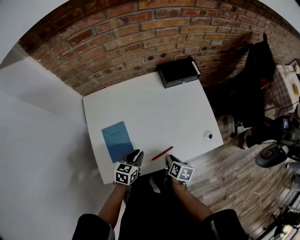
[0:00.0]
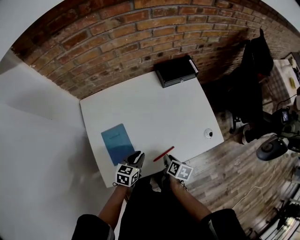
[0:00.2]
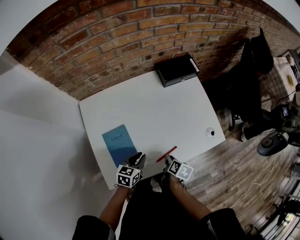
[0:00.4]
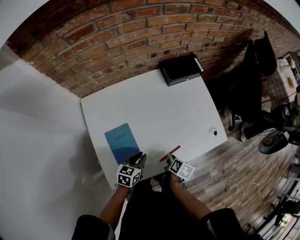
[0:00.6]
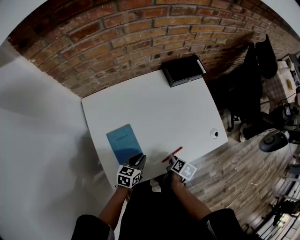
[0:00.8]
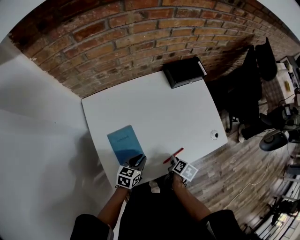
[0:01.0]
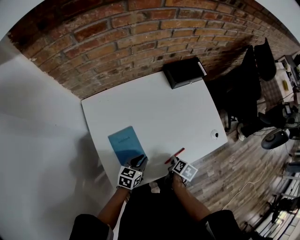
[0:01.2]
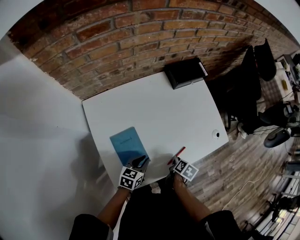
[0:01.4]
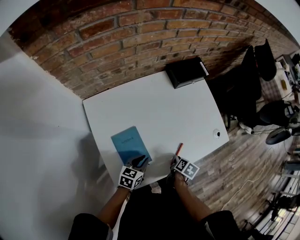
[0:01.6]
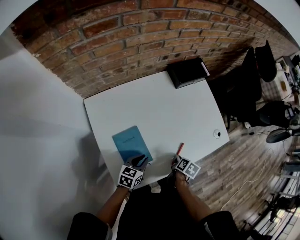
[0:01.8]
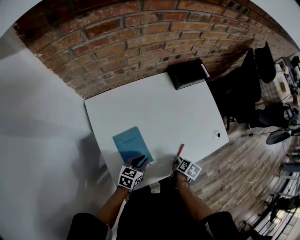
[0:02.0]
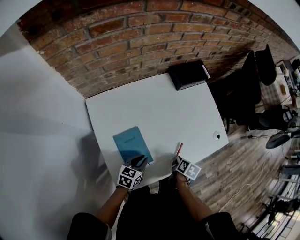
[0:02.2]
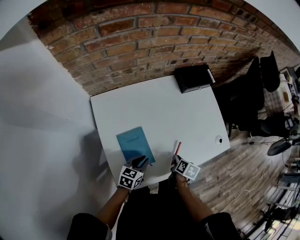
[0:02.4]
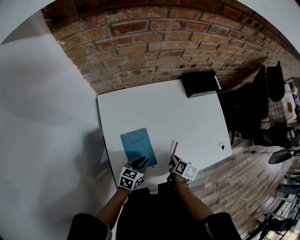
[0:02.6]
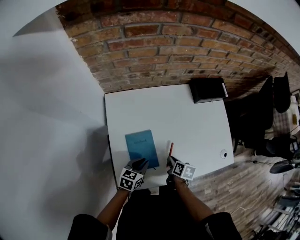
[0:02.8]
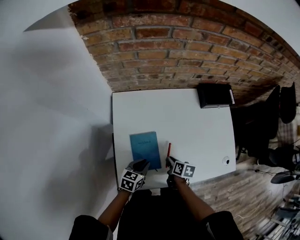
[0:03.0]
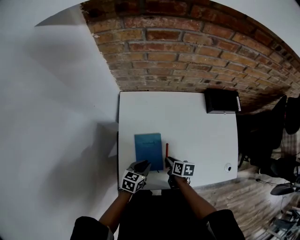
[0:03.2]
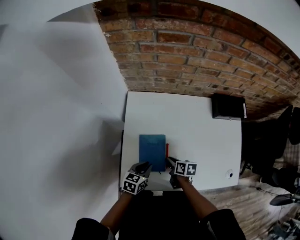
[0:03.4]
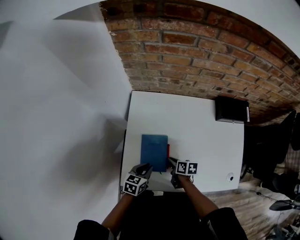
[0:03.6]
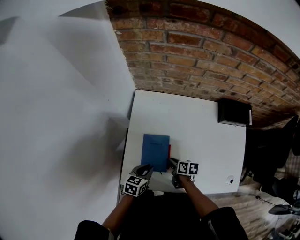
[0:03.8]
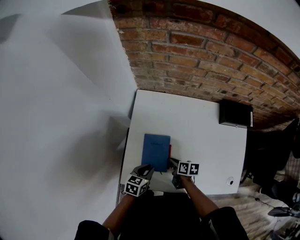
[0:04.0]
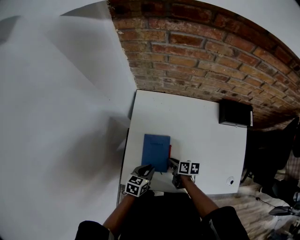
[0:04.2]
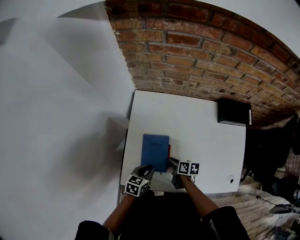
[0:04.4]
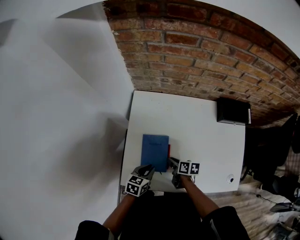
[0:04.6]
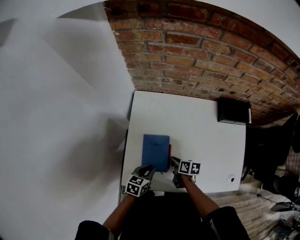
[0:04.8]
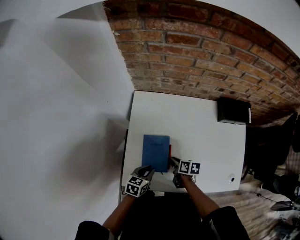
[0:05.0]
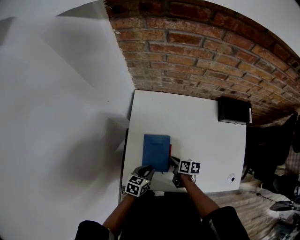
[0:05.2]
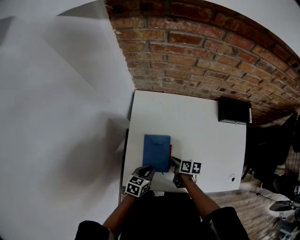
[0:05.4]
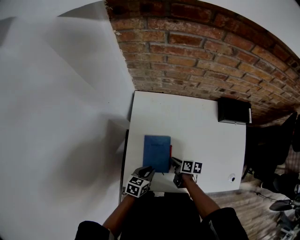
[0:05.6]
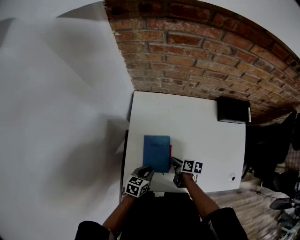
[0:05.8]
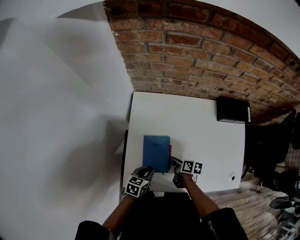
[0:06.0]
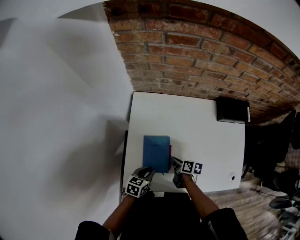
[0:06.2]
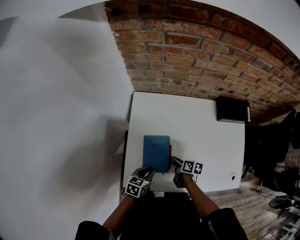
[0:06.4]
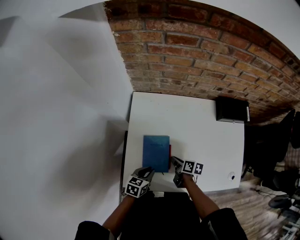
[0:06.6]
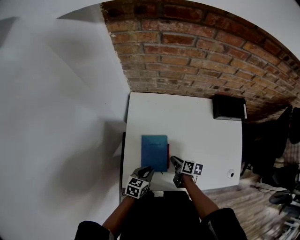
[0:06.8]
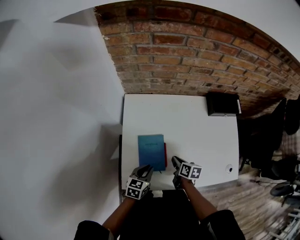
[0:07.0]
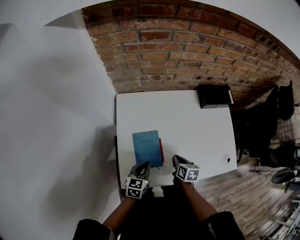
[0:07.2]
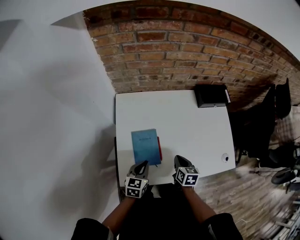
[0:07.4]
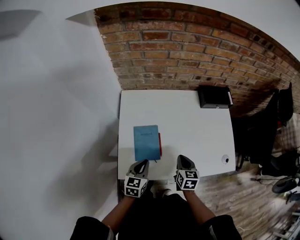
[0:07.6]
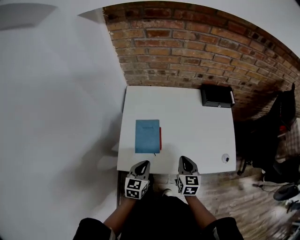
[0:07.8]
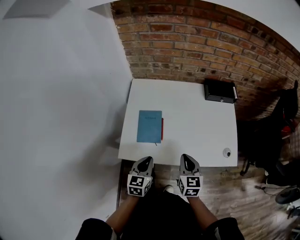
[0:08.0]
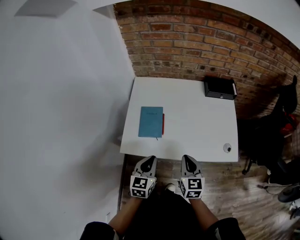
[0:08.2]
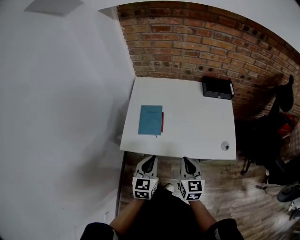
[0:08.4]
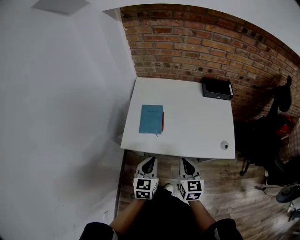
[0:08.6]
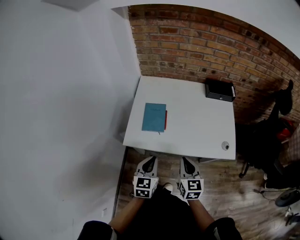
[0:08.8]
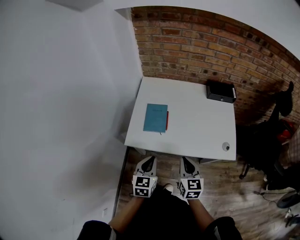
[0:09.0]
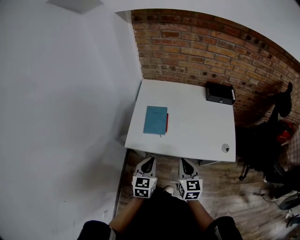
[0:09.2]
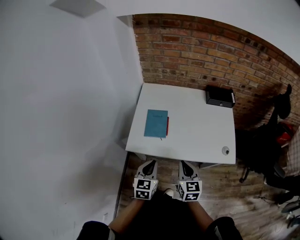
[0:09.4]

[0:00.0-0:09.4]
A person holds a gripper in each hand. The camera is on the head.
0.0 to 1.6 s: The right gripper changes place by about 5 cm, and changes its angle by about 30 degrees, while the left gripper moves to the left, approximately 5 cm.
1.6 to 3.2 s: The right gripper shifts by about 15 cm, and rotates roughly 50 degrees, while the left gripper moves about 5 cm, and swivels approximately 20 degrees.
3.2 to 6.2 s: There are only small adjustments of the grippers.
6.2 to 7.8 s: The left gripper travels backward and upward by some 10 cm, and changes its angle by approximately 20 degrees, while the right gripper is displaced upward, backward and to the right by some 20 cm, and rotates roughly 50 degrees.
7.8 to 9.4 s: The two grippers go roughly 15 cm backward and upward.

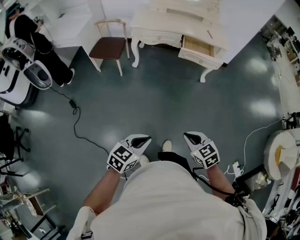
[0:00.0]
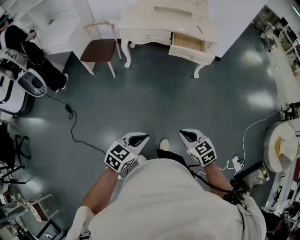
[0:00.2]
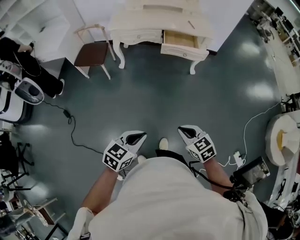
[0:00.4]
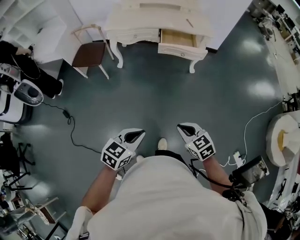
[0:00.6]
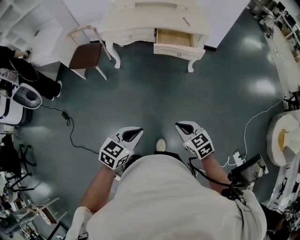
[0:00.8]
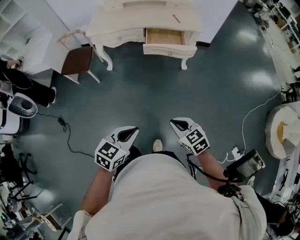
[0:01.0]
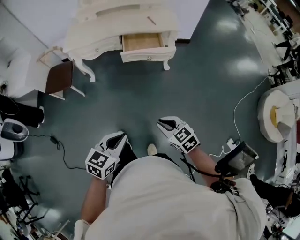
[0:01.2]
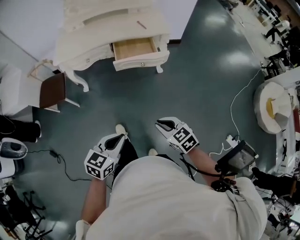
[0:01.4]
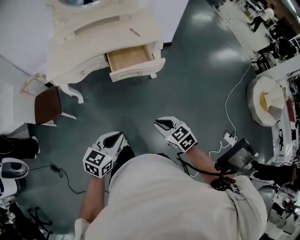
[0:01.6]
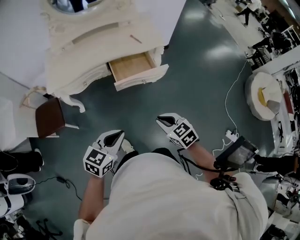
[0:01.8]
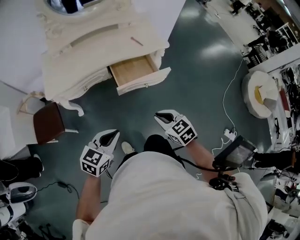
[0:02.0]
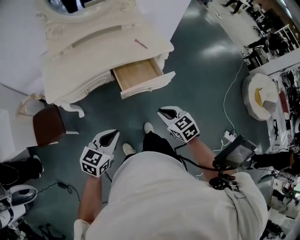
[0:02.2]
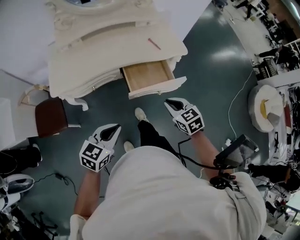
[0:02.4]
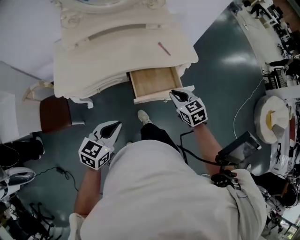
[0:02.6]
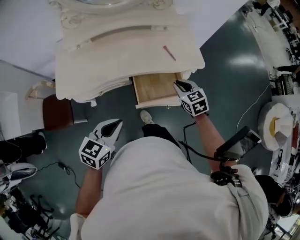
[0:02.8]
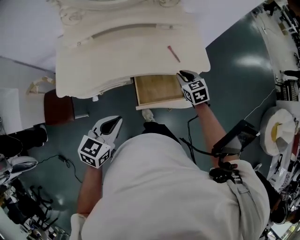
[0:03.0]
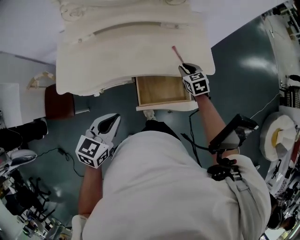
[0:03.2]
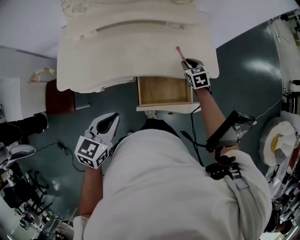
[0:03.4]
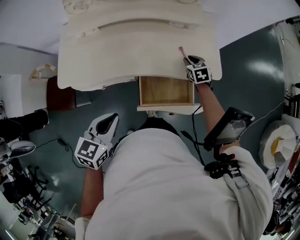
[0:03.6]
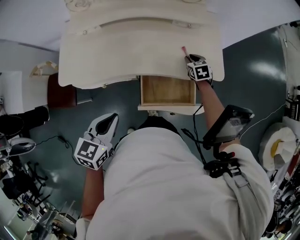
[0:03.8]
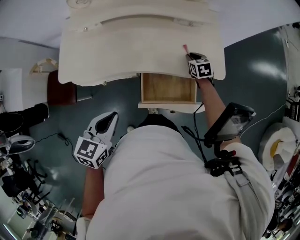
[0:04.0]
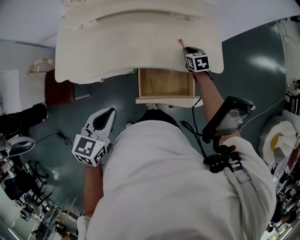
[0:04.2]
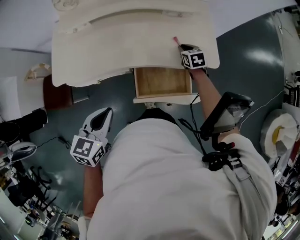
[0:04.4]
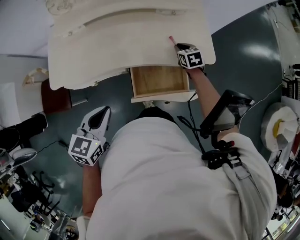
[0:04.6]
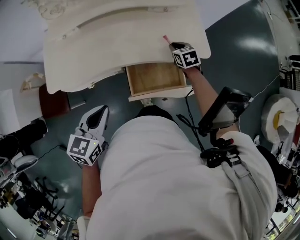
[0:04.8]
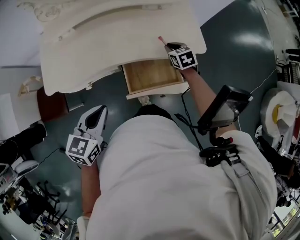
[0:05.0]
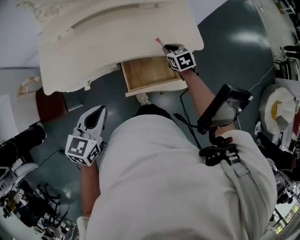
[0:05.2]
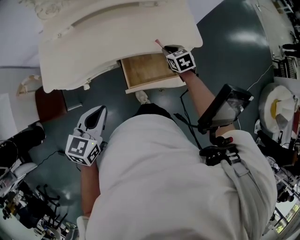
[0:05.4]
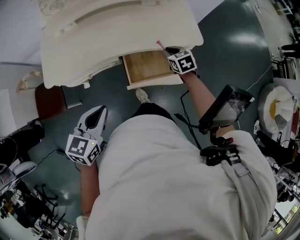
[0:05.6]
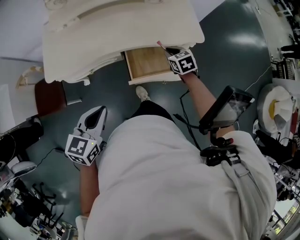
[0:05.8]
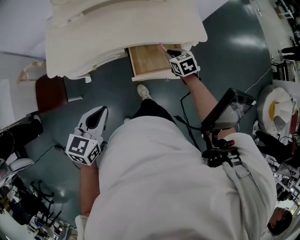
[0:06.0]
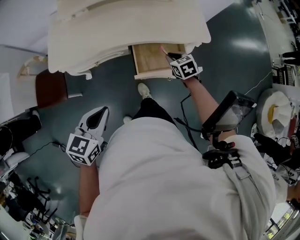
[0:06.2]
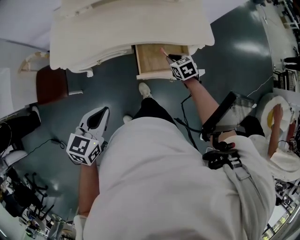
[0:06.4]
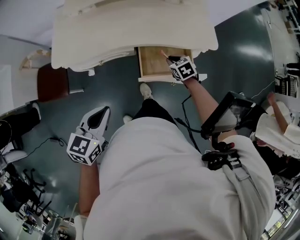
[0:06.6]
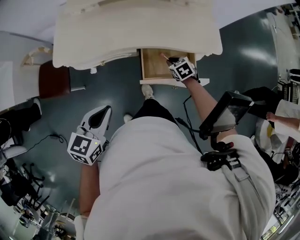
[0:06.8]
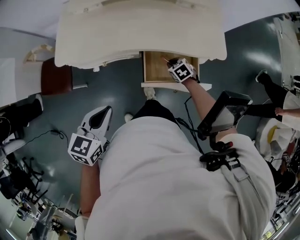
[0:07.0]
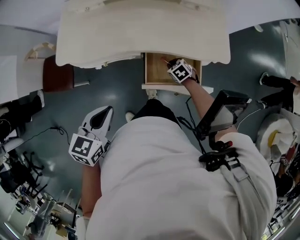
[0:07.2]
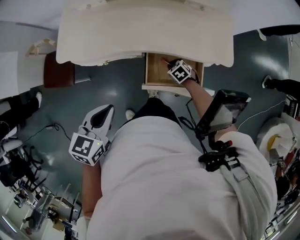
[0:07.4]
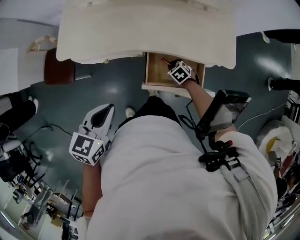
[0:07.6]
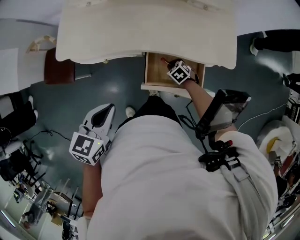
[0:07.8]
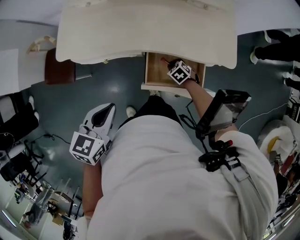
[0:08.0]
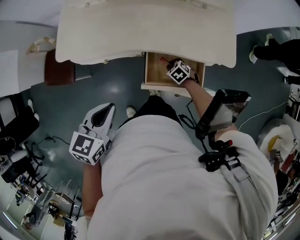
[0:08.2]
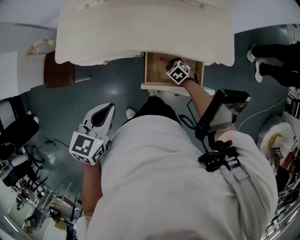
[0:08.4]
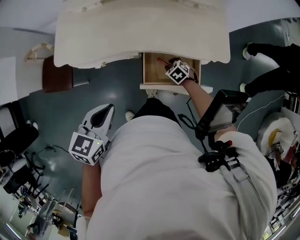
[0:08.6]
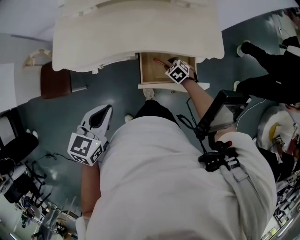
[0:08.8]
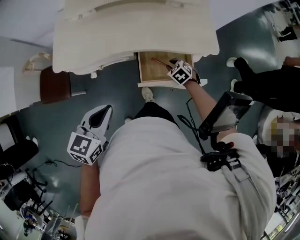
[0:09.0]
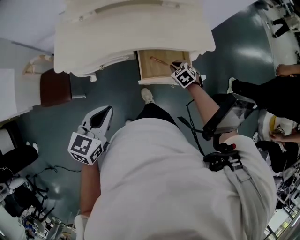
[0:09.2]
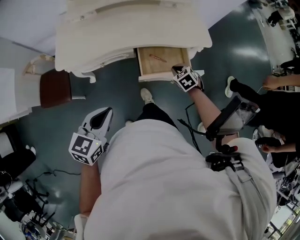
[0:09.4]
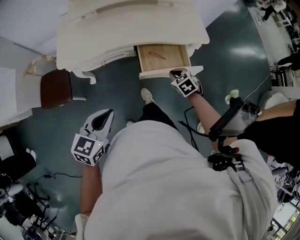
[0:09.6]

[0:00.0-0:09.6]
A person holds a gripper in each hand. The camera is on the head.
0.0 to 1.6 s: The two grippers go roughly 35 cm forward.
1.6 to 3.2 s: The pair of grippers is taken forward, roughly 50 cm.
3.2 to 4.8 s: The right gripper is displaced downward and forward by some 10 cm.
4.8 to 6.4 s: Both grippers move backward, approximately 20 cm.
6.4 to 8.0 s: The right gripper heads downward, covering some 15 cm, and changes its angle by roughly 30 degrees, while the left gripper shifts some 10 cm forward and to the right.
8.0 to 9.6 s: The left gripper changes place by about 15 cm, while the right gripper is displaced upward by roughly 15 cm, and swivels roughly 20 degrees.

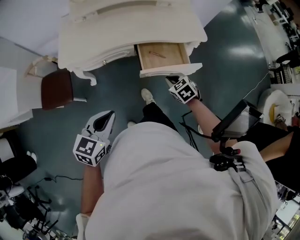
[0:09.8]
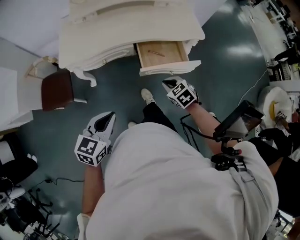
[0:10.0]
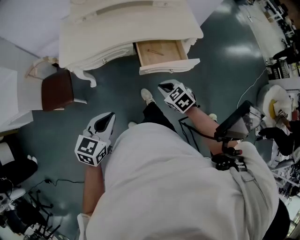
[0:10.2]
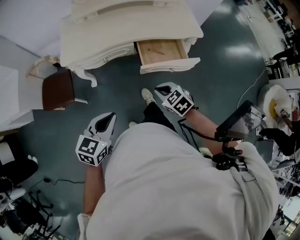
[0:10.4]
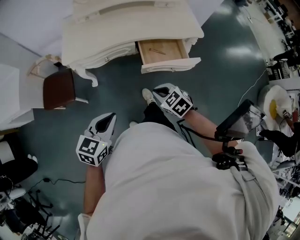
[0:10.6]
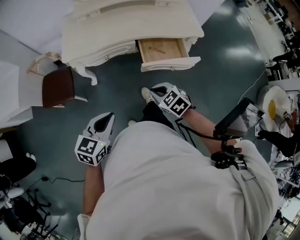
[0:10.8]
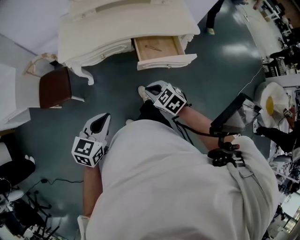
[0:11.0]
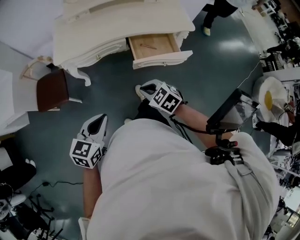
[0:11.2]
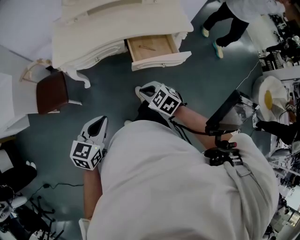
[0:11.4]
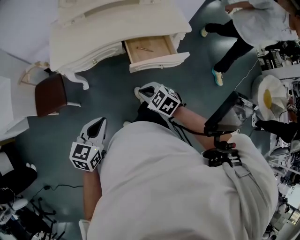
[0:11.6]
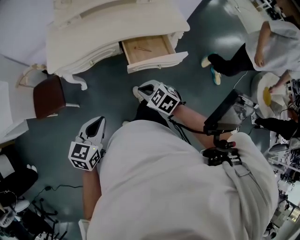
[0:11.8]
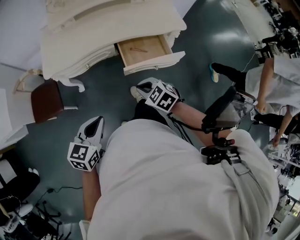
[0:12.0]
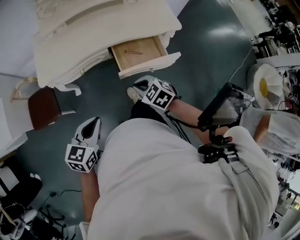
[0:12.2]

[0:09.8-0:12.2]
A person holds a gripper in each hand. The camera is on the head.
9.8 to 11.0 s: The right gripper shifts about 15 cm to the left and backward.
11.0 to 12.2 s: There are only small adjustments of the grippers.

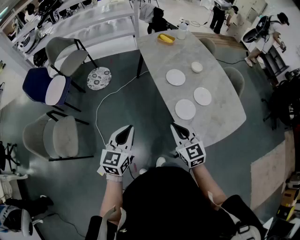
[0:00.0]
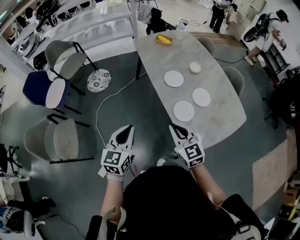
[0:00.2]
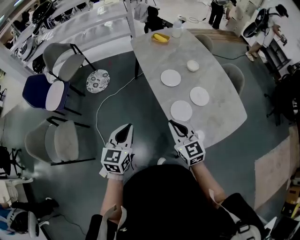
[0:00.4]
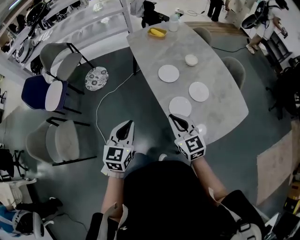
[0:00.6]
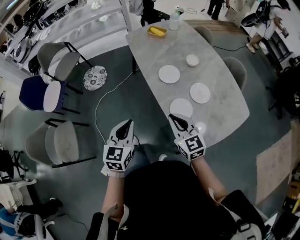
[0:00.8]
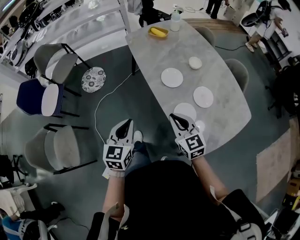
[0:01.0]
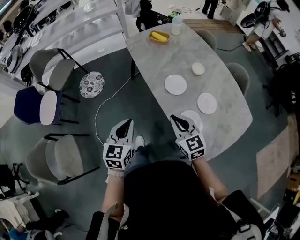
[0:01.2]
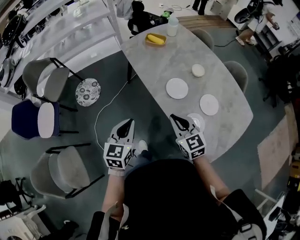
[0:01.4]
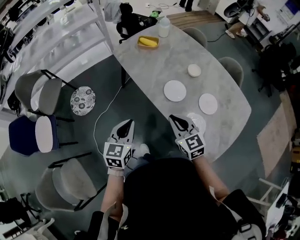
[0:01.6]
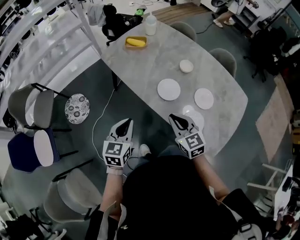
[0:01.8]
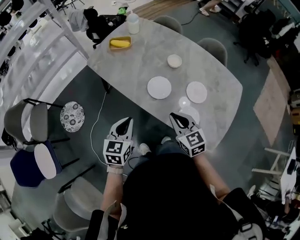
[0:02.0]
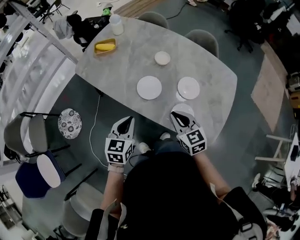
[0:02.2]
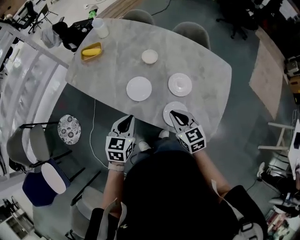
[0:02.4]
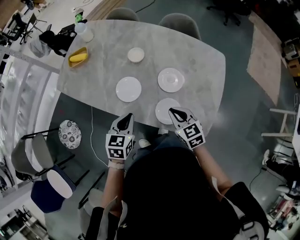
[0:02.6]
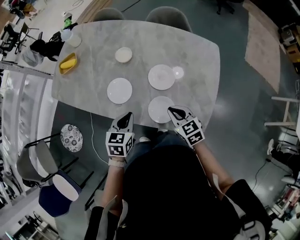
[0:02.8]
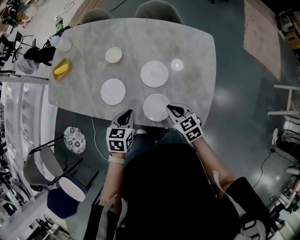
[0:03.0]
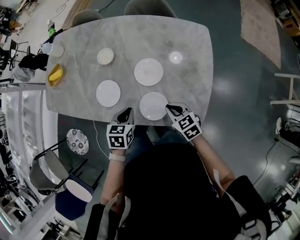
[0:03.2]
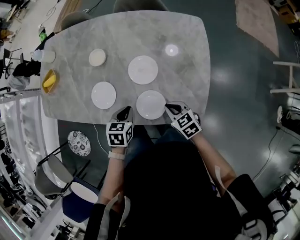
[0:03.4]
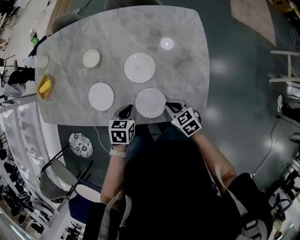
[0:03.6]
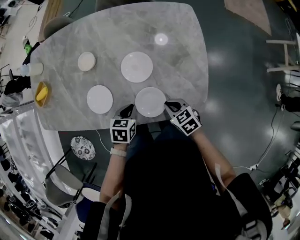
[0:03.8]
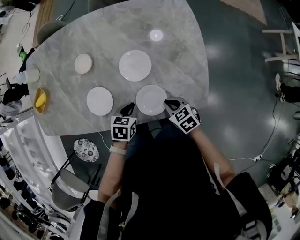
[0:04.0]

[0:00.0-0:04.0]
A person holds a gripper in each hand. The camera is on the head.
0.0 to 1.4 s: The grippers both shift forward by about 25 cm.
1.4 to 2.6 s: The left gripper changes place by roughly 25 cm, and turns by about 40 degrees. Meanwhile the right gripper shifts by roughly 25 cm, and turns by about 40 degrees.
2.6 to 4.0 s: The two grippers go roughly 20 cm downward and to the right. The left gripper rotates about 40 degrees; the right gripper changes its angle by roughly 30 degrees.
